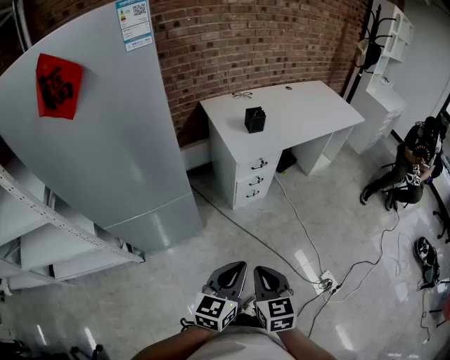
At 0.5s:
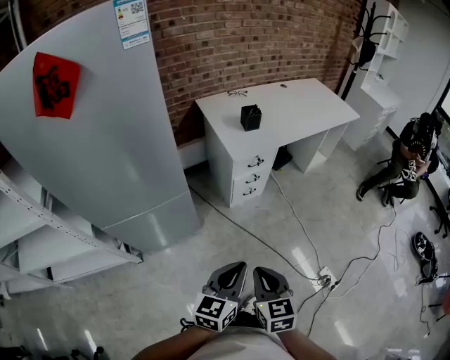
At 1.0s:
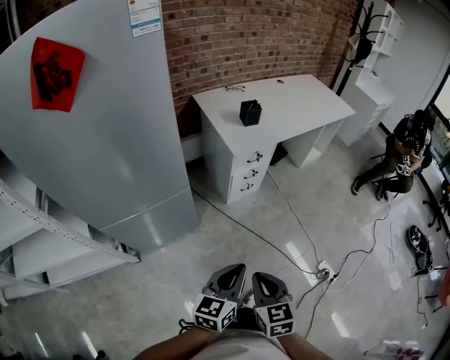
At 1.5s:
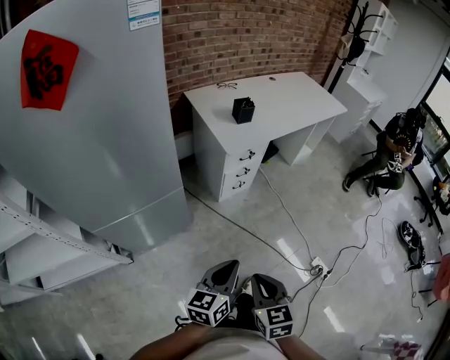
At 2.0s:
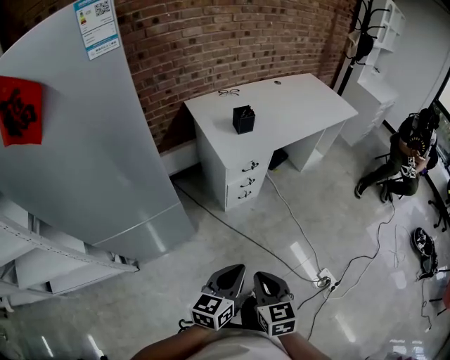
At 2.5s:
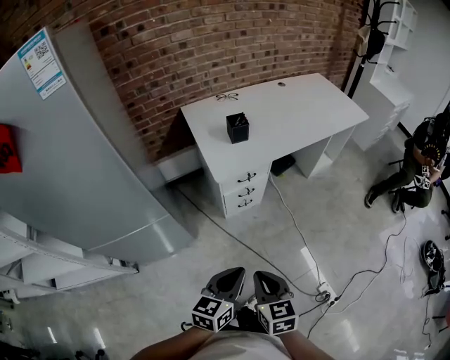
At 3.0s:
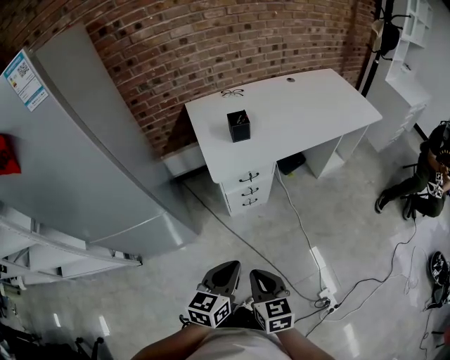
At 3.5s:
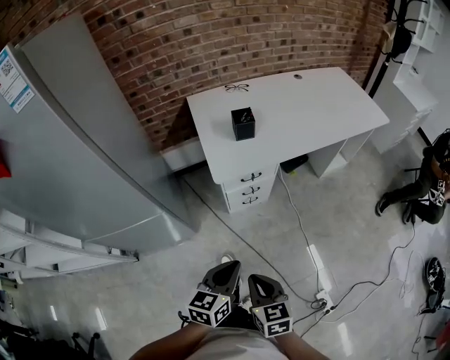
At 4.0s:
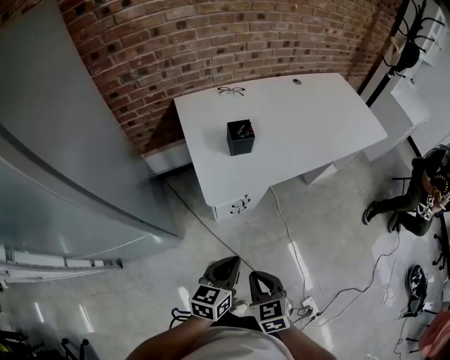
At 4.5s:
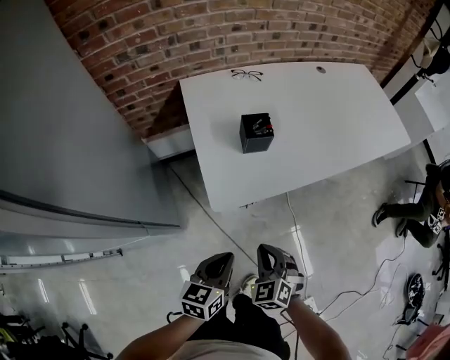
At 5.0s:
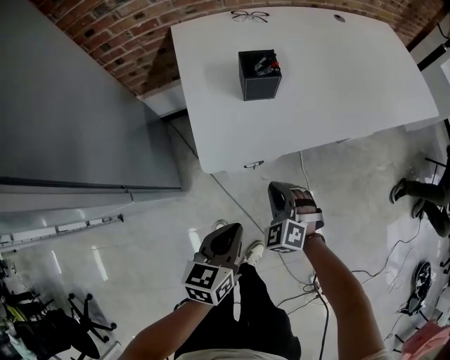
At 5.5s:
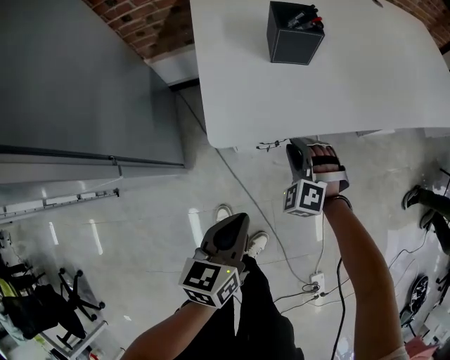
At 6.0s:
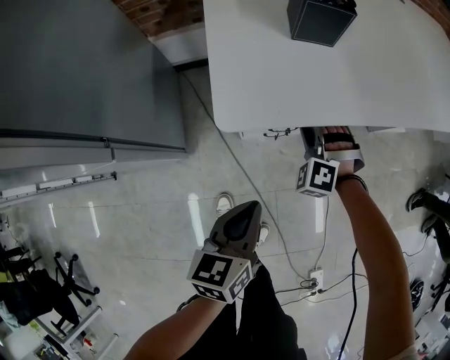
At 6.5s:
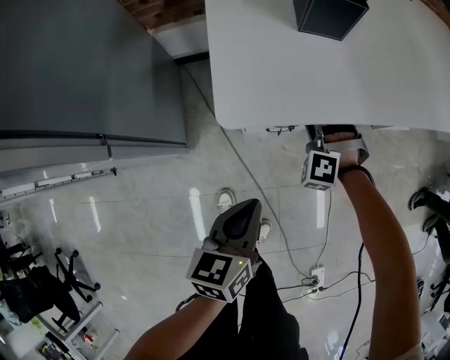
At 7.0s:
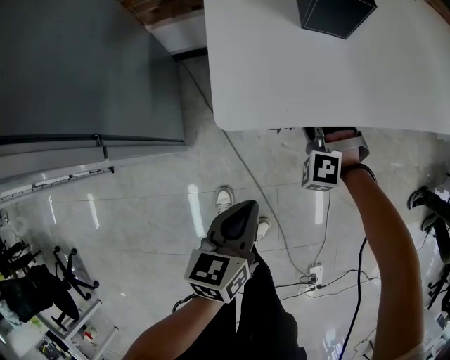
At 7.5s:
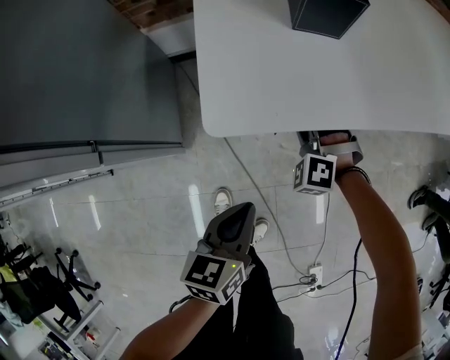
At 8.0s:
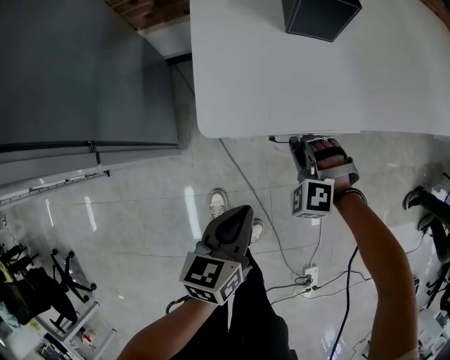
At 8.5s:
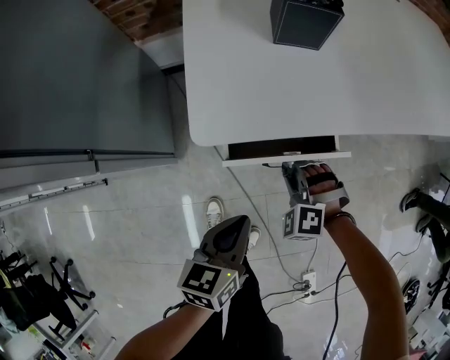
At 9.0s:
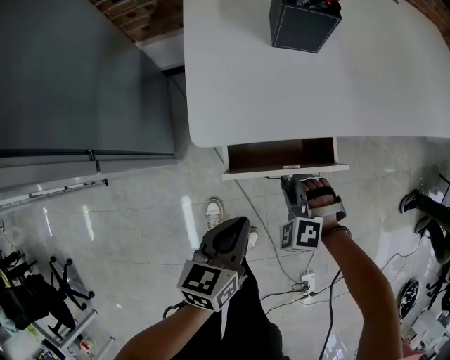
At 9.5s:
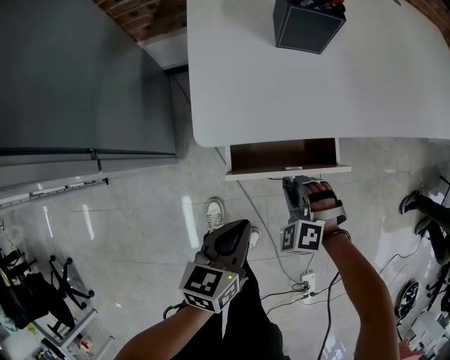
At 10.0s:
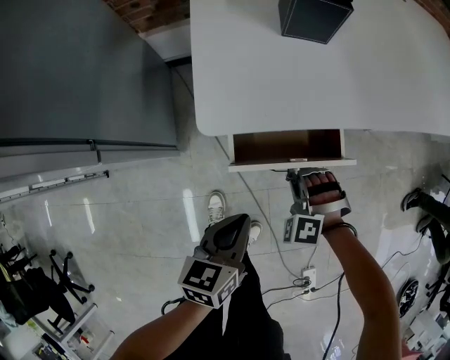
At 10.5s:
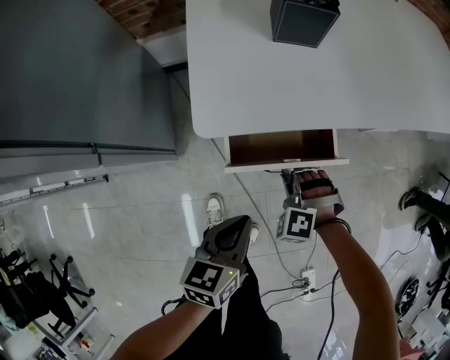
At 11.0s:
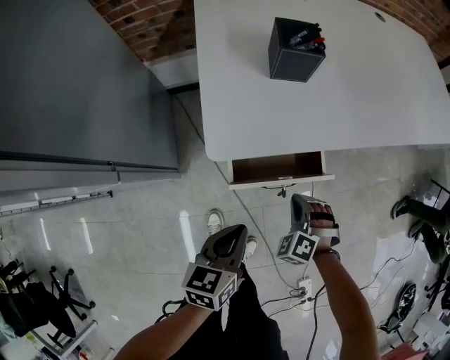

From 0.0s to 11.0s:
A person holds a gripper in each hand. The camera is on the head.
From 0.0s to 2.0s: The left gripper is displaced forward by roughly 5 cm; the right gripper shifts by roughly 5 cm.
From 2.0s to 3.5s: Both grippers travel together forward and to the right, approximately 20 cm.
From 3.5s to 5.5s: The left gripper is displaced downward and forward by roughly 30 cm, and rotates some 20 degrees. Meanwhile the right gripper heads forward and downward, covering some 50 cm, and rolls counterclockwise, seen from behind, by about 80 degrees.
From 5.5s to 7.5s: Both grippers travel together downward, some 5 cm.
From 7.5s to 9.0s: The right gripper moves backward, some 15 cm.
From 9.0s to 11.0s: The right gripper ends up about 5 cm from where it was.

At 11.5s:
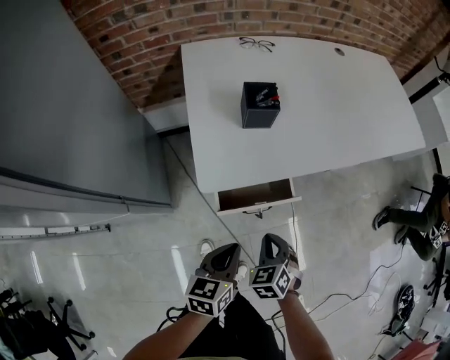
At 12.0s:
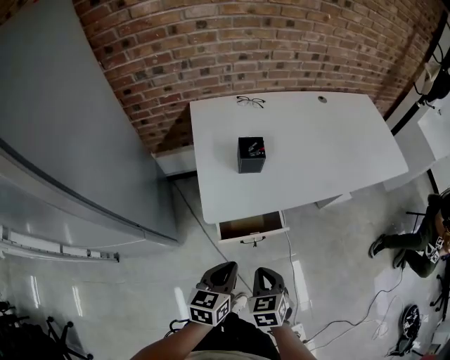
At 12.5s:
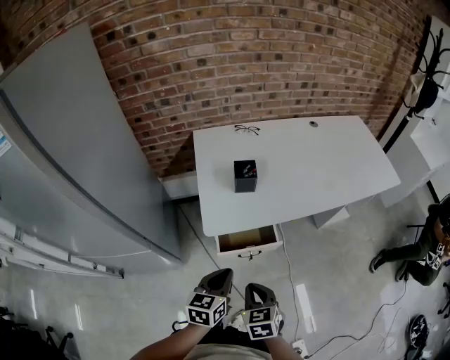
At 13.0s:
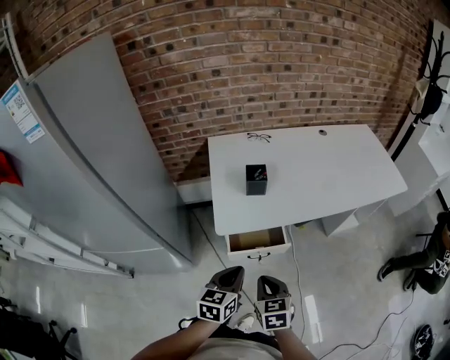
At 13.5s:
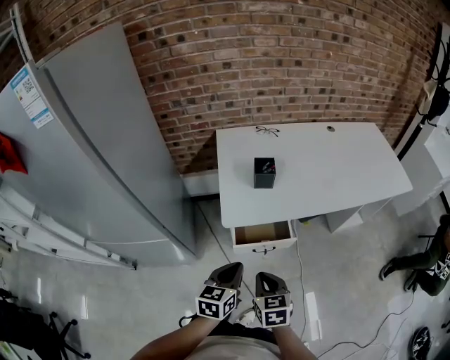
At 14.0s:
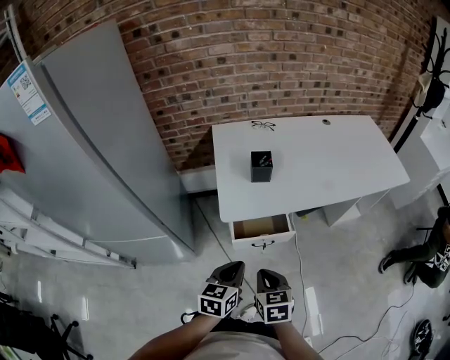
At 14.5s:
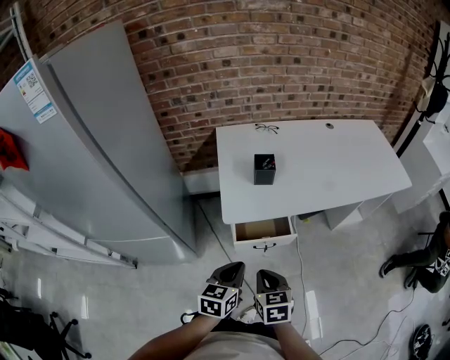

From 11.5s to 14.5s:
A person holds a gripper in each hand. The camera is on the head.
From 11.5s to 13.0s: Both grippers travel together upward, approximately 15 cm. The right gripper swivels some 30 degrees.
From 13.0s to 14.5s: There are only small adjustments of the grippers.

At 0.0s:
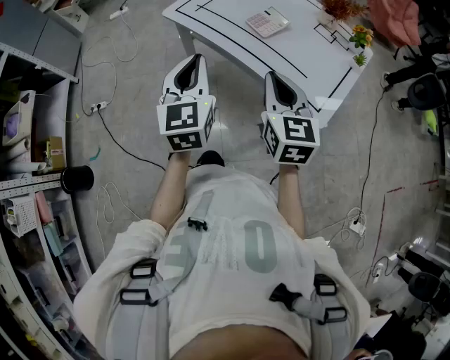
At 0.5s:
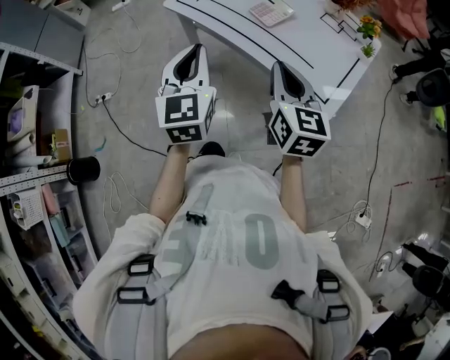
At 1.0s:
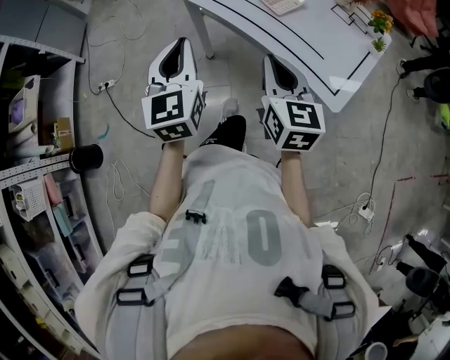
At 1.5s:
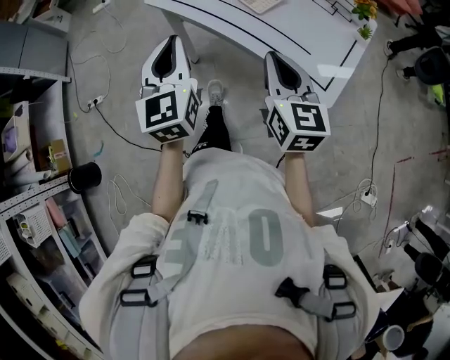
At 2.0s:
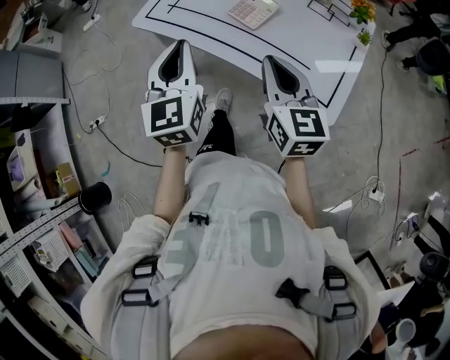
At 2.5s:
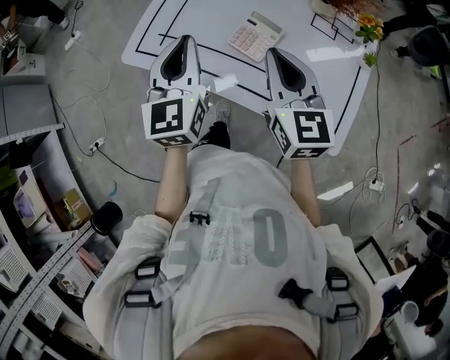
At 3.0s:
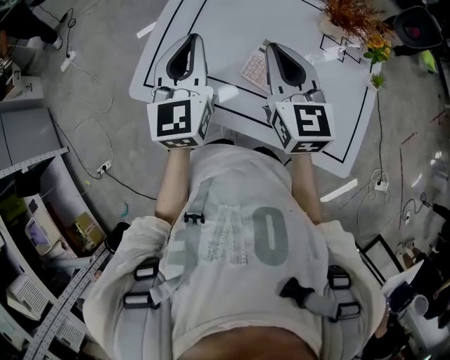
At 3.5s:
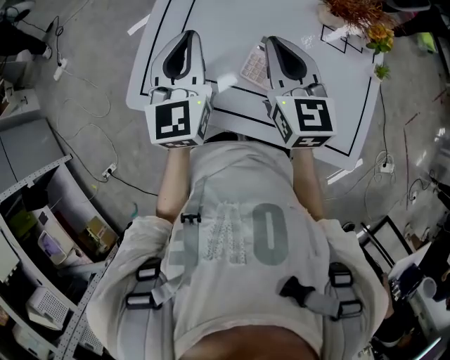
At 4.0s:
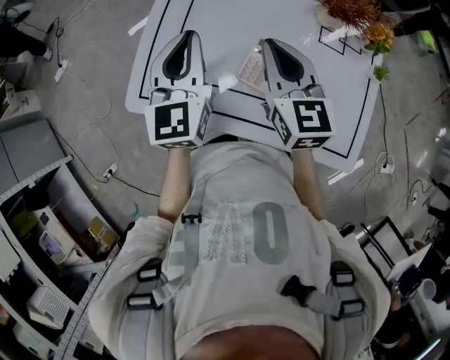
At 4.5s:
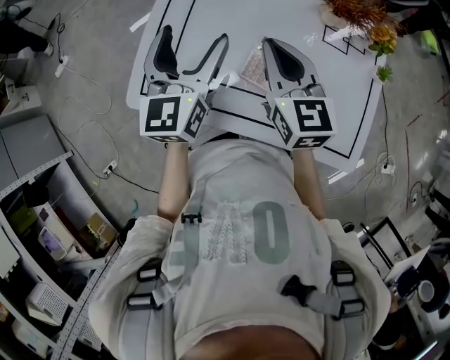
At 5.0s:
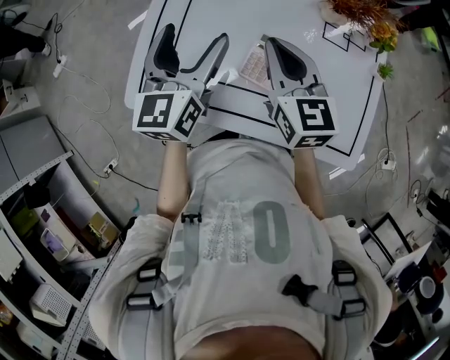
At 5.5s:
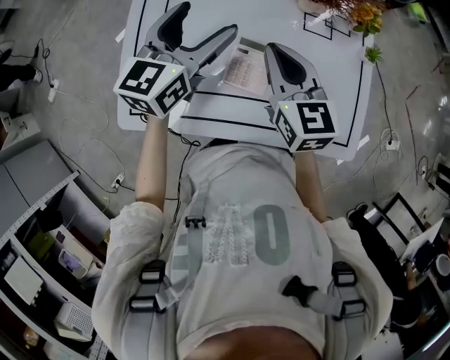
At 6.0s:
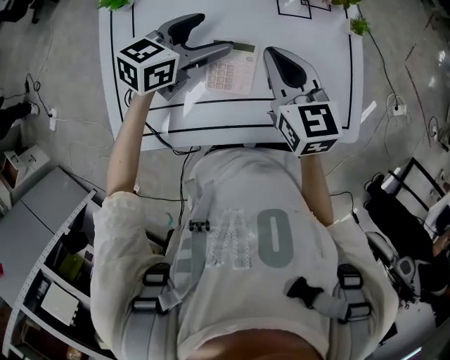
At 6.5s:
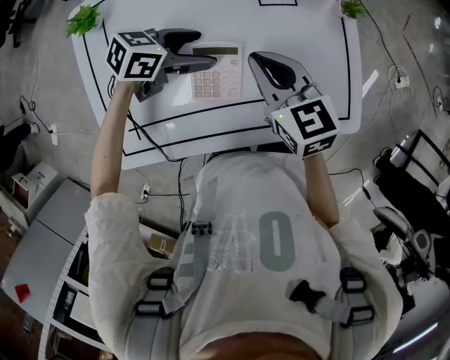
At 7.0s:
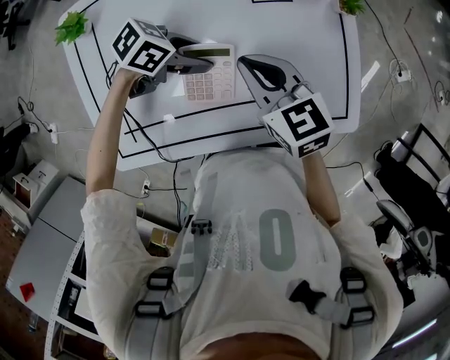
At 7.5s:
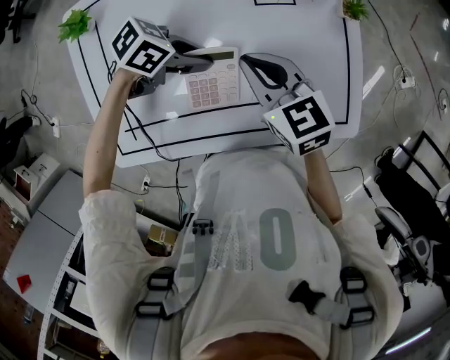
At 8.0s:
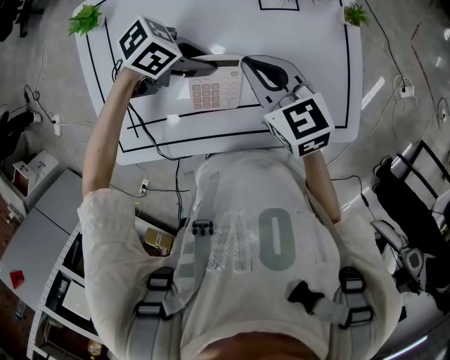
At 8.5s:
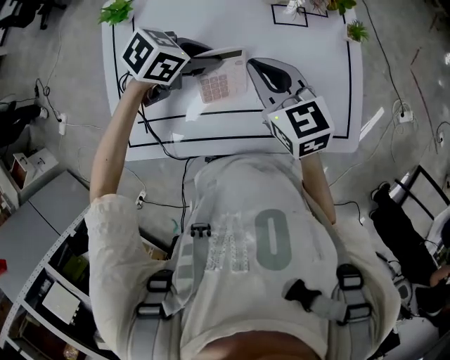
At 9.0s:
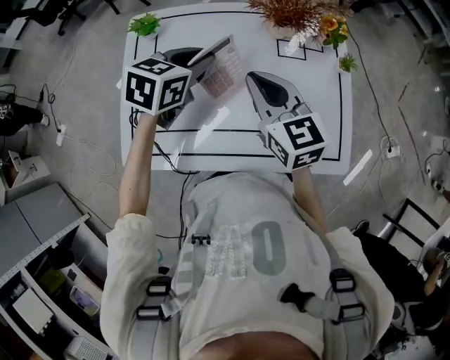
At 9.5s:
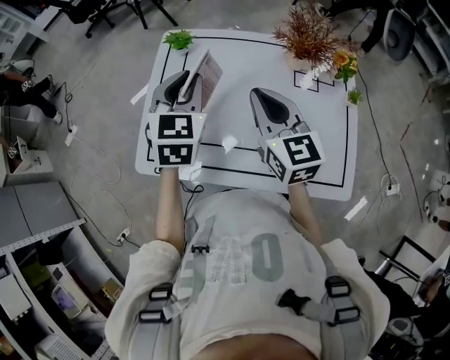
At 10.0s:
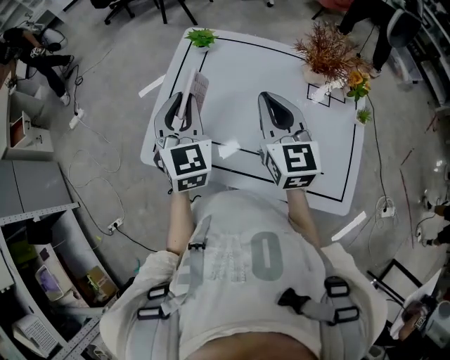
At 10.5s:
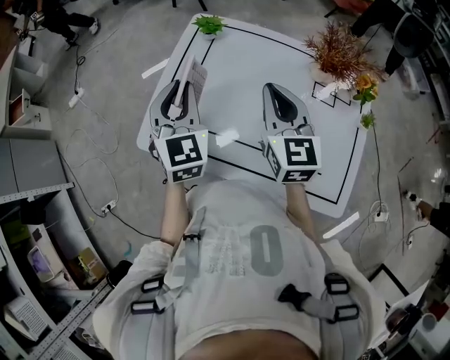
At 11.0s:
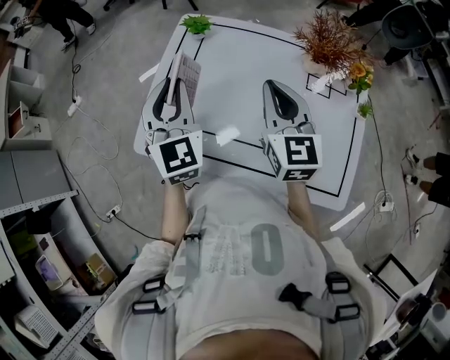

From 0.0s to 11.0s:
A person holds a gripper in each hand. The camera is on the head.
From 0.0s to 2.0s: Both grippers move forward, about 10 cm.
From 2.0s to 3.5s: Both grippers travel together forward, roughly 30 cm.
From 3.5s to 5.5s: The left gripper is displaced to the right and forward by about 10 cm, swivels roughly 40 degrees, and opens its fingers. Meanwhile the right gripper heads to the right, covering roughly 5 cm.
From 5.5s to 7.5s: The right gripper travels downward by about 10 cm, while the left gripper is displaced downward by some 20 cm, changes its angle by roughly 90 degrees, and closes its fingers.
From 7.5s to 9.0s: The two grippers go about 15 cm upward. The left gripper changes its angle by about 60 degrees.
From 9.0s to 11.0s: The right gripper shifts by approximately 5 cm; the left gripper ends up approximately 20 cm from where it was, and angles its fingers upward, by roughly 30 degrees.

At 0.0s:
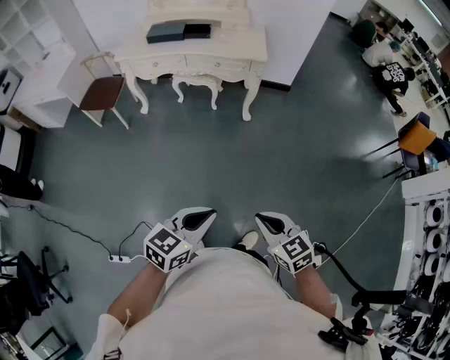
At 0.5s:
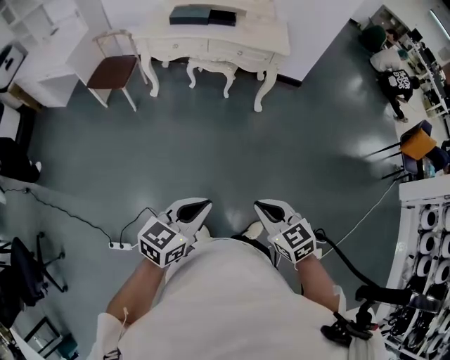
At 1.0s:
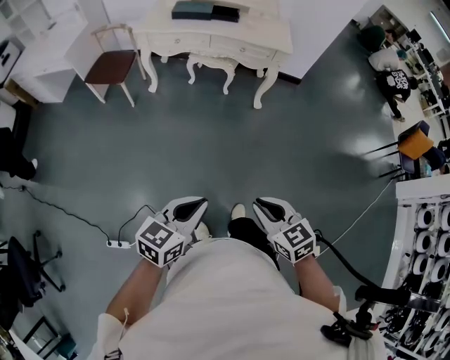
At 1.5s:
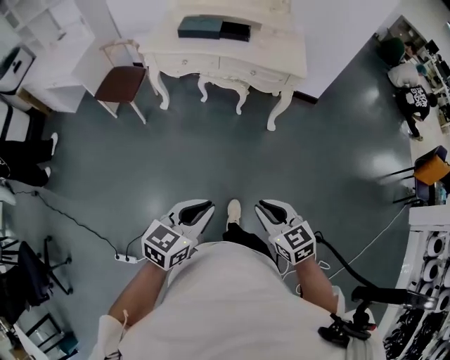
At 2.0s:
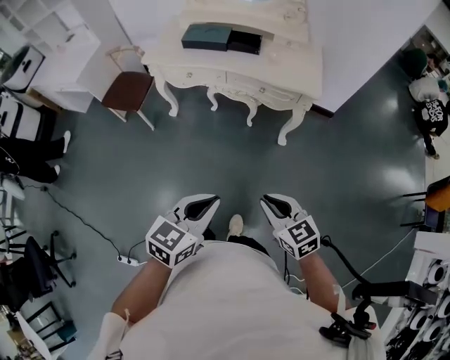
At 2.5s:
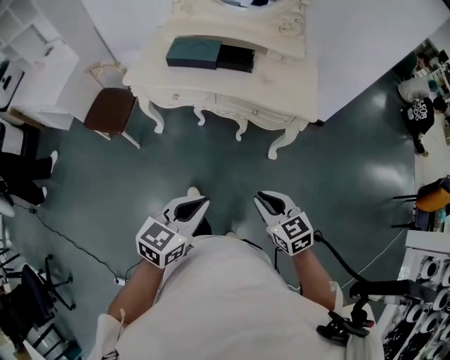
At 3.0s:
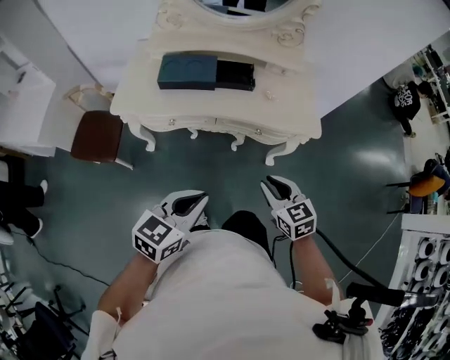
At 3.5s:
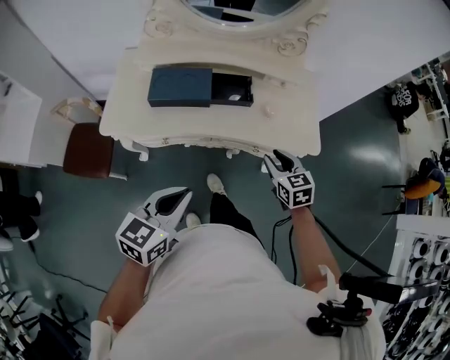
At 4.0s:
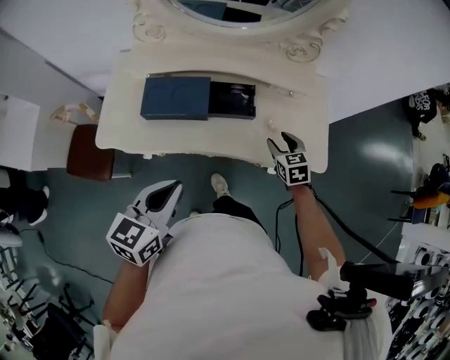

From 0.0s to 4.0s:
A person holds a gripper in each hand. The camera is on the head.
From 0.0s to 2.0s: Both grippers travel together forward, approximately 35 cm.
From 2.0s to 4.0s: Both grippers are carried forward, roughly 60 cm. The right gripper rotates some 30 degrees, and opens its fingers.
